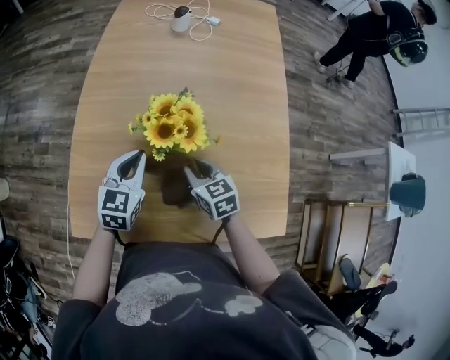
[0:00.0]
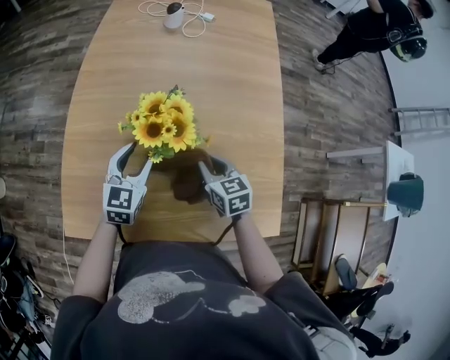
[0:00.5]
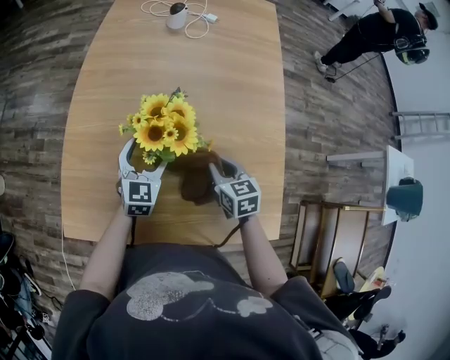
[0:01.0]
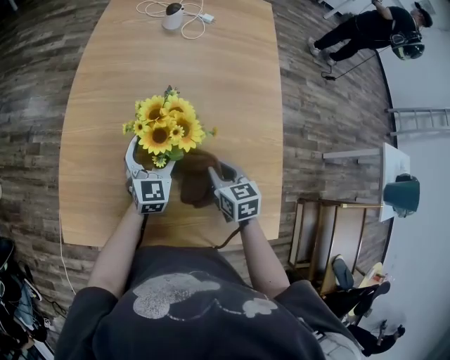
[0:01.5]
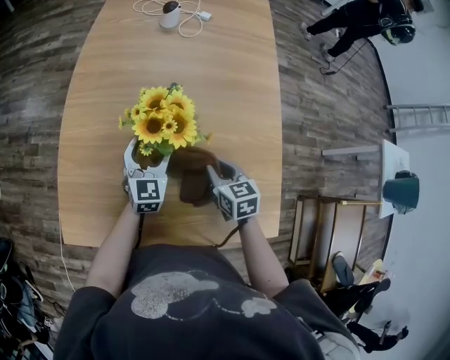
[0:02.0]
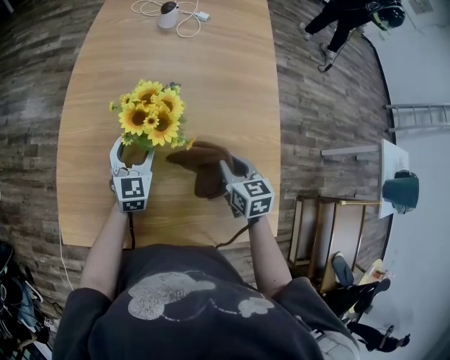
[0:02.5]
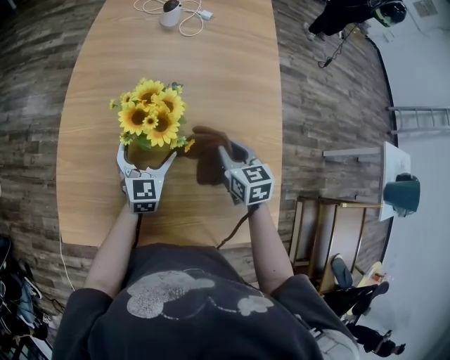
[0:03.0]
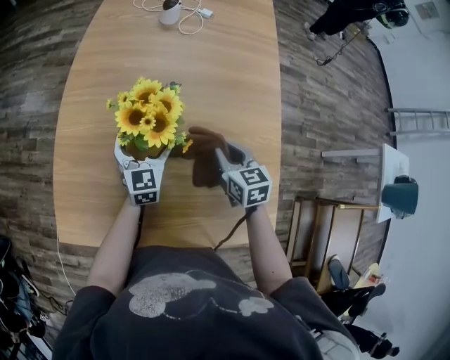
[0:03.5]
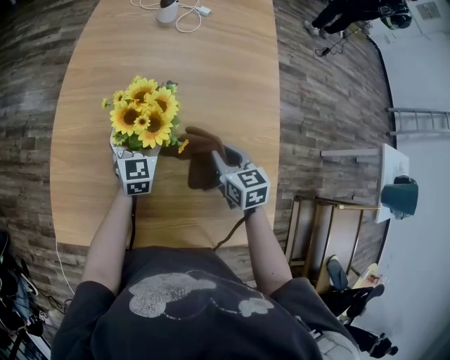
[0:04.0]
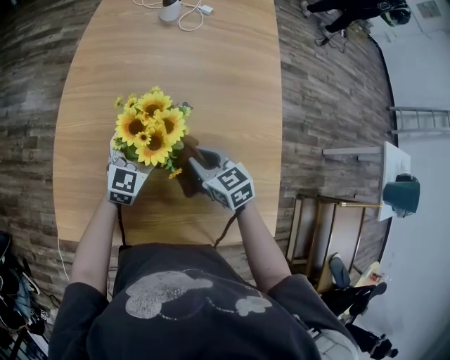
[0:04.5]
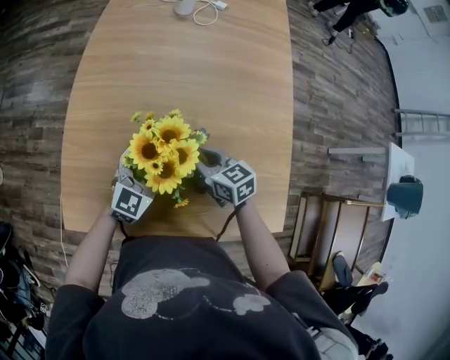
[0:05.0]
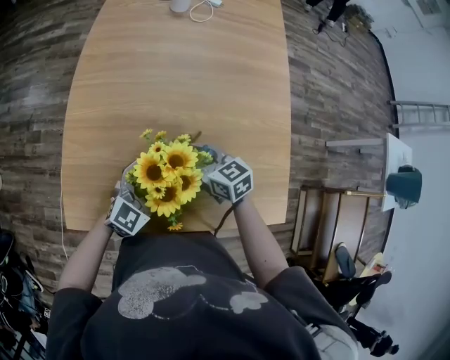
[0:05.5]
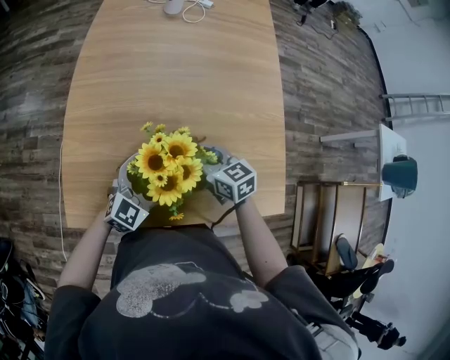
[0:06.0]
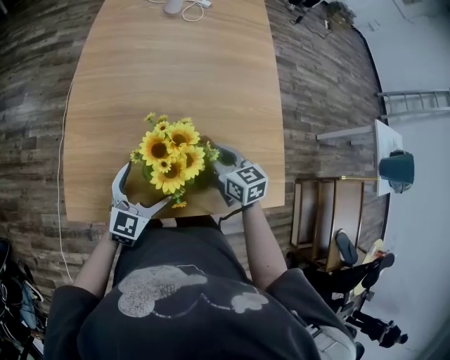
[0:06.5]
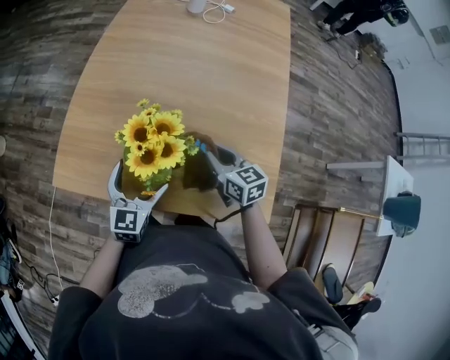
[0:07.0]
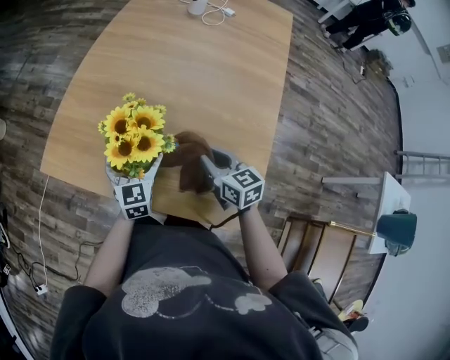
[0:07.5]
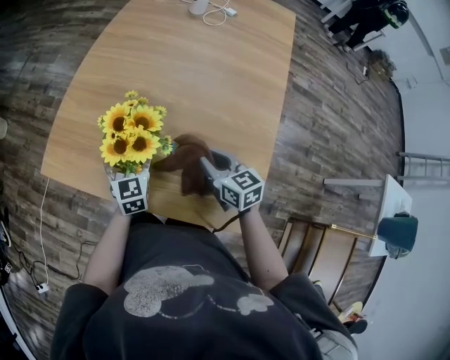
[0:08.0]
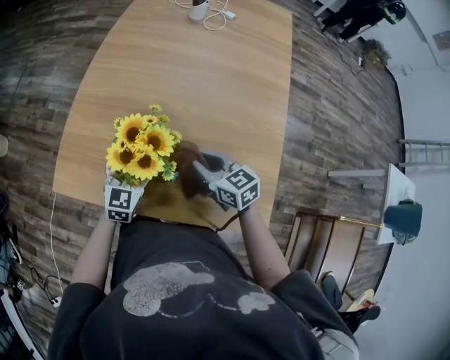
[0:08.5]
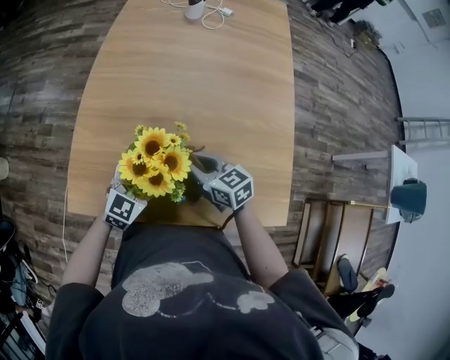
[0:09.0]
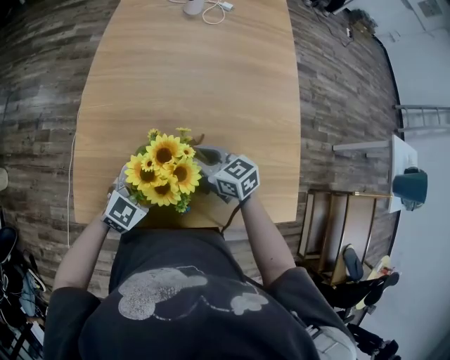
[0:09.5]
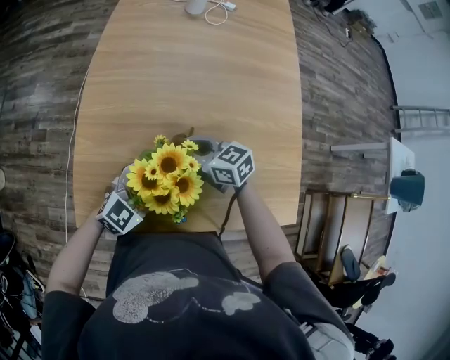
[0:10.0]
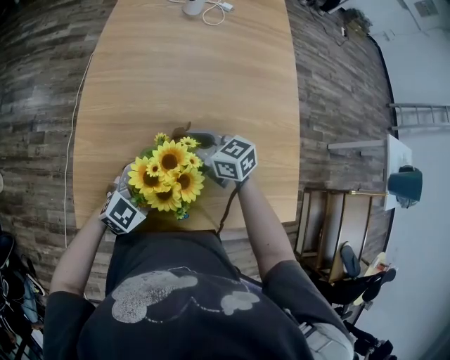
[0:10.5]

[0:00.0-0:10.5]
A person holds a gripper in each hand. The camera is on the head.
0.0 to 2.0 s: The right gripper goes approximately 10 cm to the right, while the left gripper moves to the right and downward, some 10 cm, and opens up.
2.0 to 4.0 s: The left gripper travels forward by about 5 cm, and opens its fingers, while the right gripper ends up approximately 5 cm from where it was.
4.0 to 6.5 s: The right gripper moves backward and to the left, some 15 cm. The left gripper moves backward, roughly 25 cm, and changes its angle by approximately 30 degrees.
6.5 to 8.5 s: The right gripper swivels about 30 degrees, while the left gripper ends up roughly 5 cm from where it was, and rotates about 30 degrees.
8.5 to 10.5 s: The right gripper travels to the left and forward by about 15 cm, while the left gripper changes its angle by approximately 50 degrees.

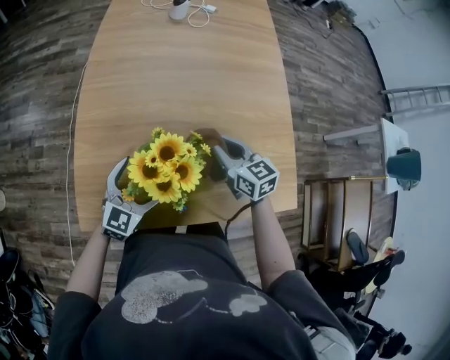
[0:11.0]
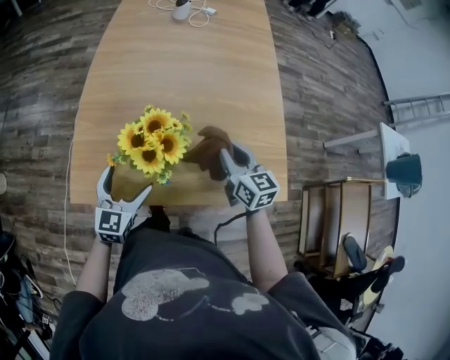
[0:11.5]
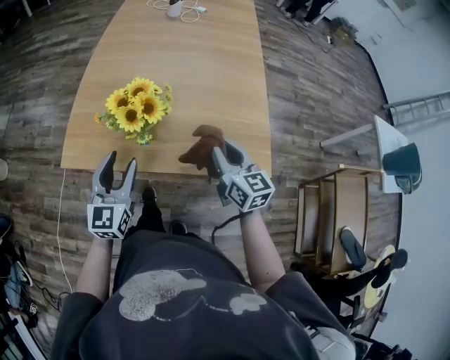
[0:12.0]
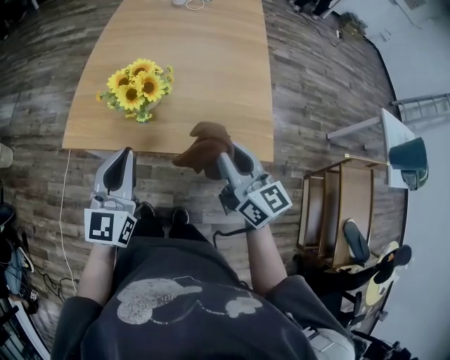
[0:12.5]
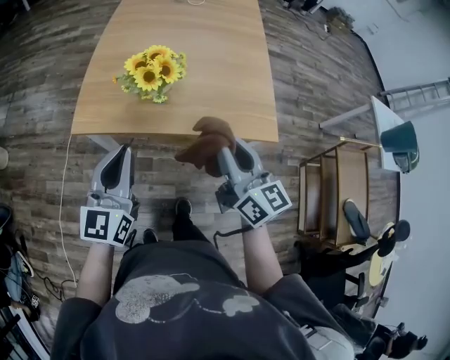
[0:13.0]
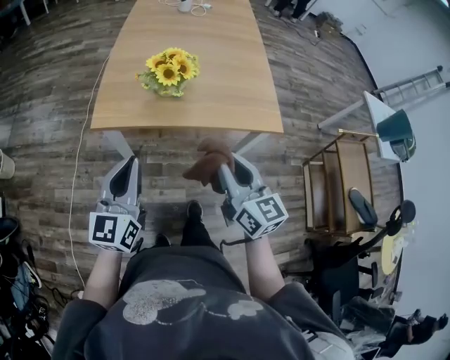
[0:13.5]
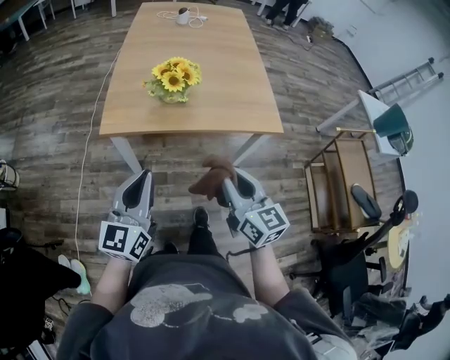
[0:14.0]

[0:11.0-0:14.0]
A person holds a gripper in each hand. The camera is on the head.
11.0 to 12.5 s: The grippers both shift backward and upward by about 30 cm. The right gripper turns by about 30 degrees, while the left gripper changes its angle by about 40 degrees, and closes up.
12.5 to 14.0 s: Both grippers travel together backward and to the left, roughly 20 cm.

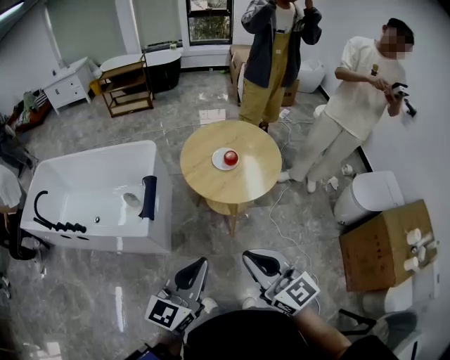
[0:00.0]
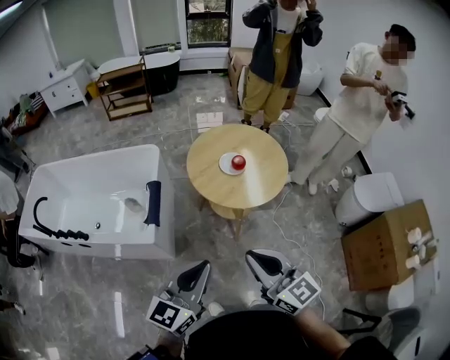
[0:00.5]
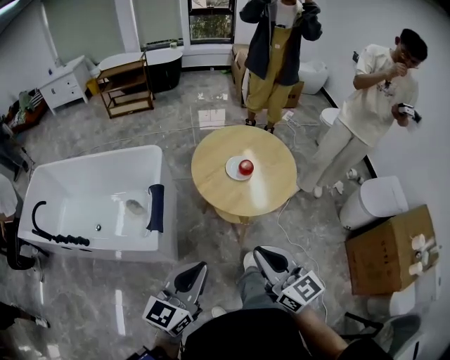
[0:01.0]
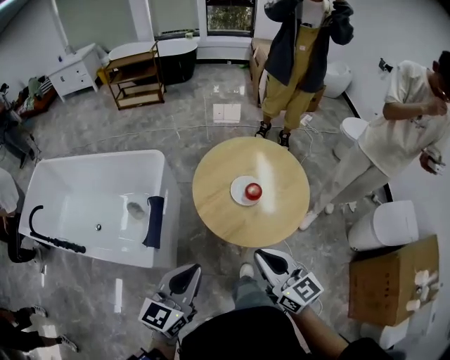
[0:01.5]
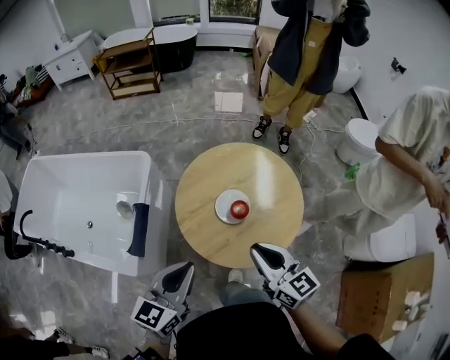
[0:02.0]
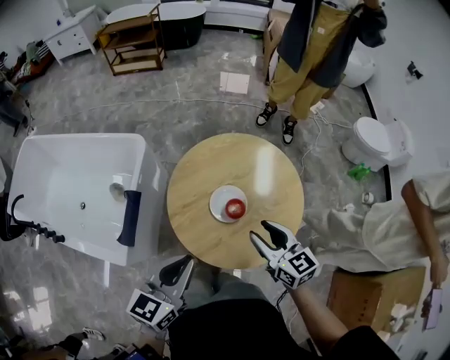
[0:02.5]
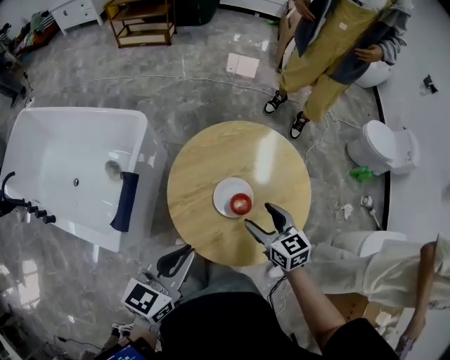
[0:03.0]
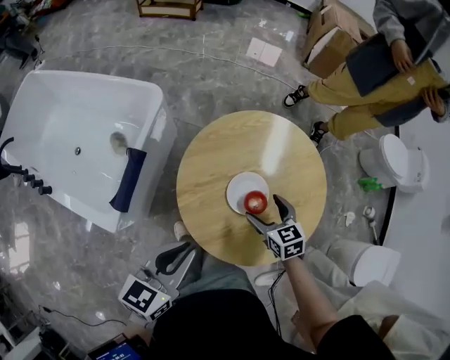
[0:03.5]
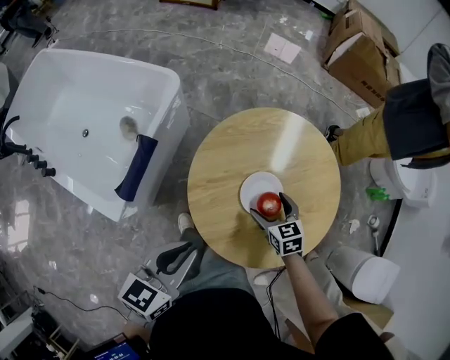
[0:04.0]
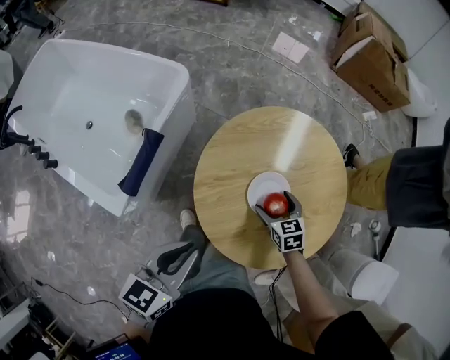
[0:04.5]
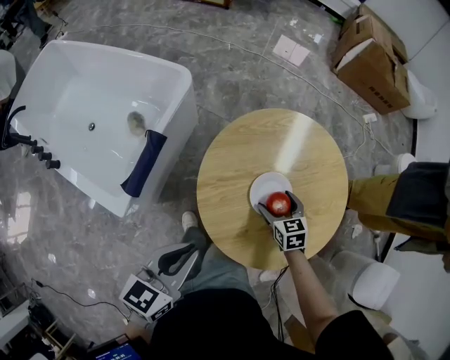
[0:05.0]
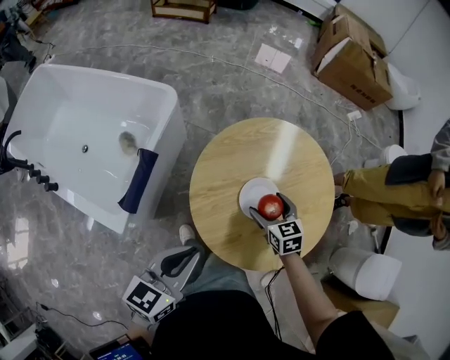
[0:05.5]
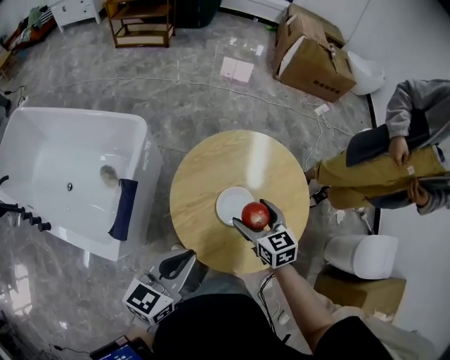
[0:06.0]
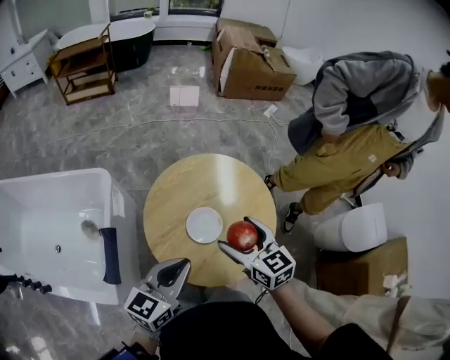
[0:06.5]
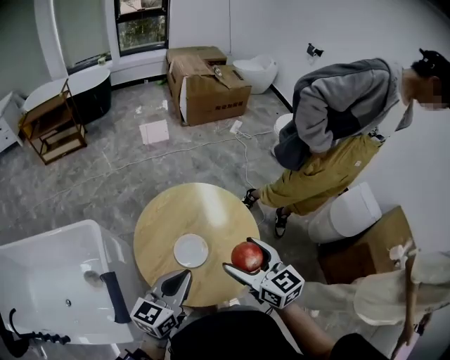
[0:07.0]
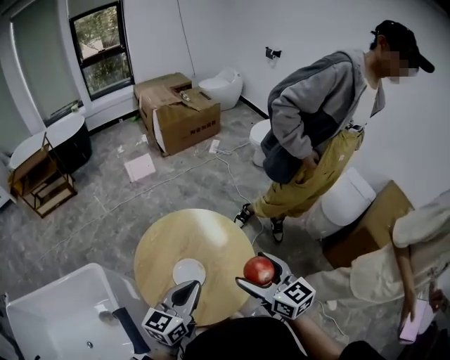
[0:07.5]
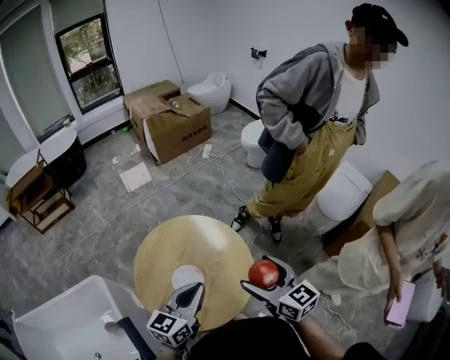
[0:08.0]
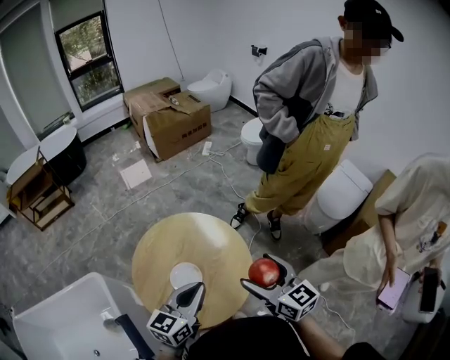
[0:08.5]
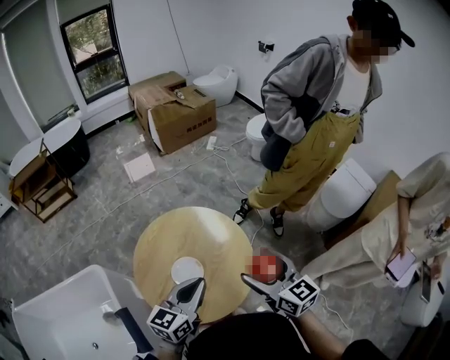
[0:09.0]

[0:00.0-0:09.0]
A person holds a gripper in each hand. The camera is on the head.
0.0 to 2.0 s: Both grippers move forward, approximately 35 cm.
2.0 to 4.5 s: The right gripper moves downward and forward, approximately 35 cm, tips its fingers downward by roughly 40 degrees, and opens its fingers. The left gripper goes approximately 15 cm downward and forward, and rotates roughly 20 degrees.
4.5 to 7.0 s: The left gripper changes place by about 20 cm, and rotates roughly 40 degrees. The right gripper is displaced upward by some 35 cm, and angles its fingers upward, by about 30 degrees.
7.0 to 9.0 s: Both grippers travel together to the right, about 10 cm.

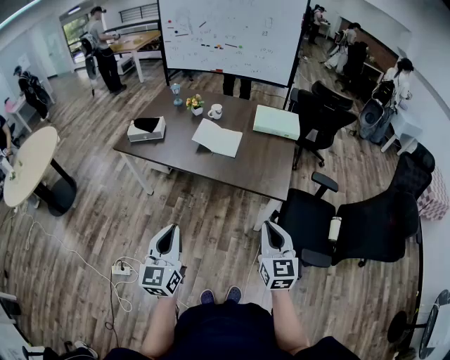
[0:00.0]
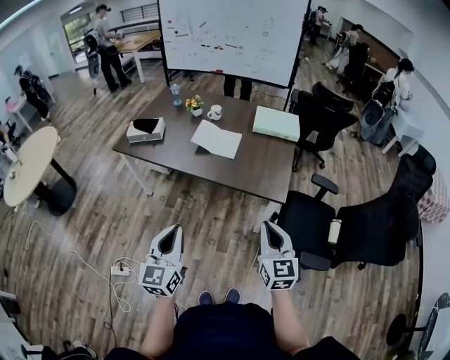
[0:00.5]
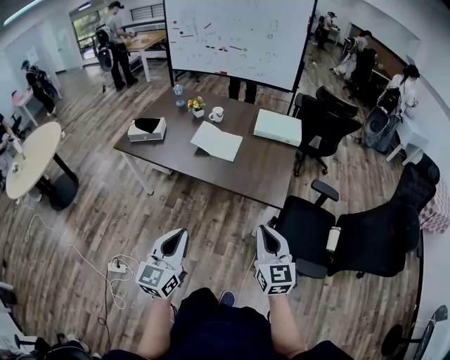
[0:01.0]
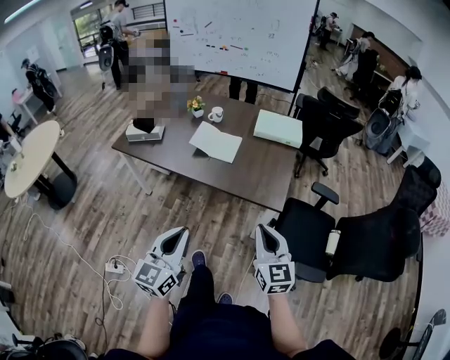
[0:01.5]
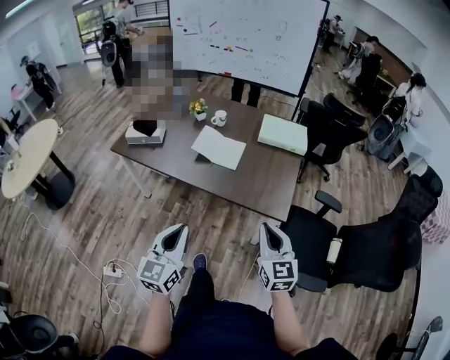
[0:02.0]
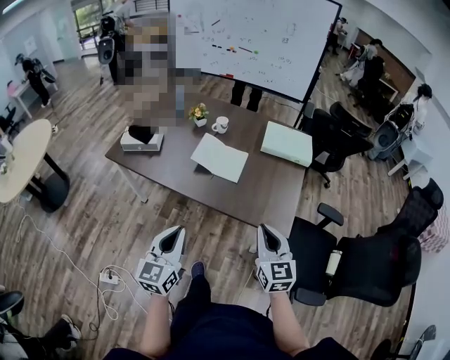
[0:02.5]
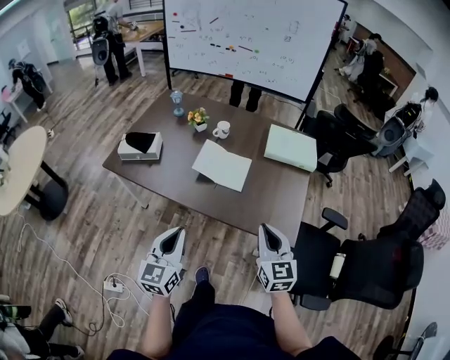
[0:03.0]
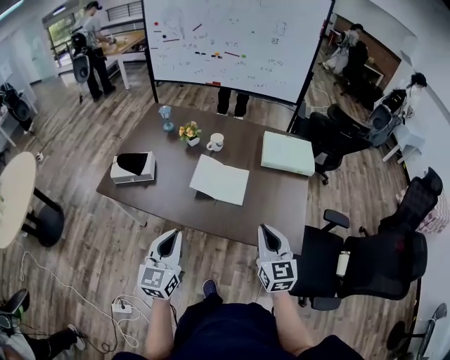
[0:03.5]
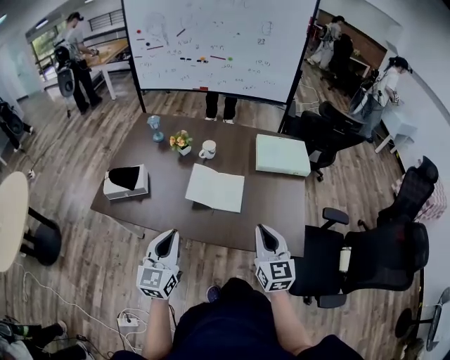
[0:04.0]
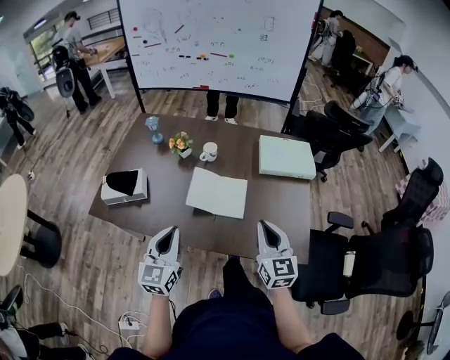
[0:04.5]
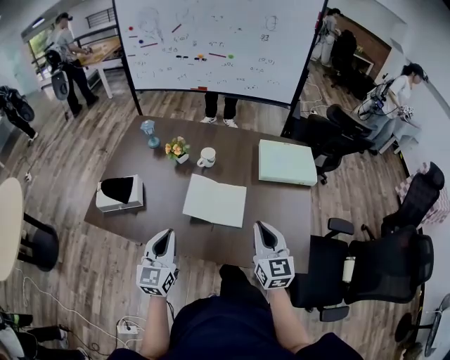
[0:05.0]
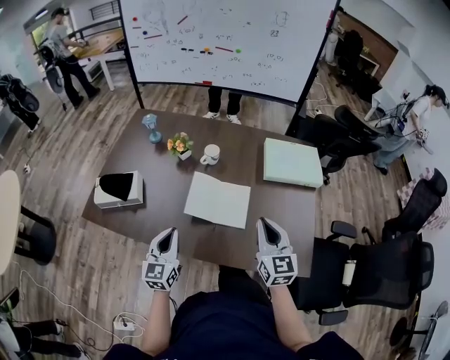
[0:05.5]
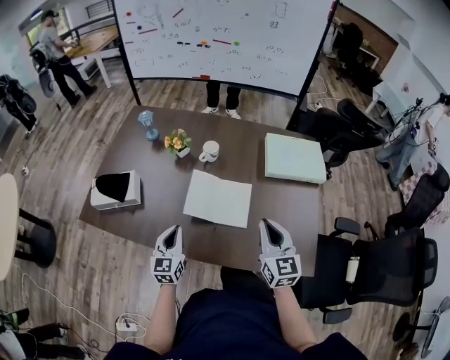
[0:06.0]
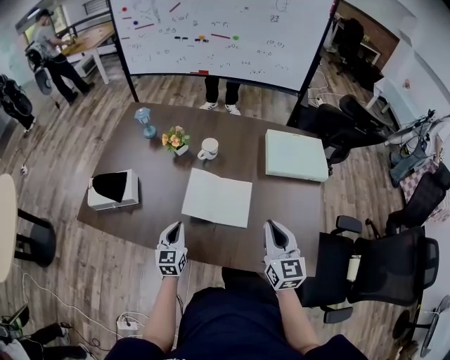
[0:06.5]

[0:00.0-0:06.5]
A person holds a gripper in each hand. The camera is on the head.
0.0 to 2.0 s: The left gripper shifts approximately 10 cm forward and to the right. Meanwhile the right gripper travels forward by about 10 cm.
2.0 to 4.5 s: The grippers both shift forward by approximately 35 cm.
4.5 to 6.5 s: The left gripper travels downward and forward by roughly 25 cm, while the right gripper goes some 10 cm forward and downward.
